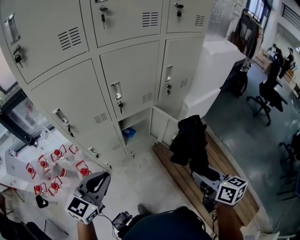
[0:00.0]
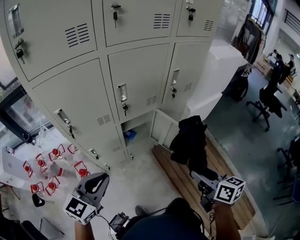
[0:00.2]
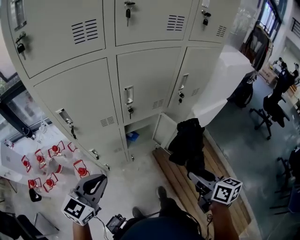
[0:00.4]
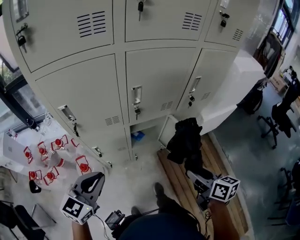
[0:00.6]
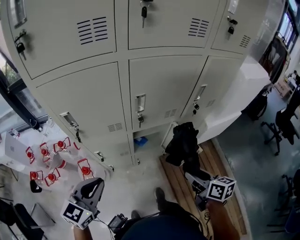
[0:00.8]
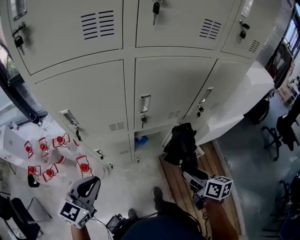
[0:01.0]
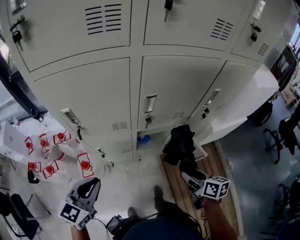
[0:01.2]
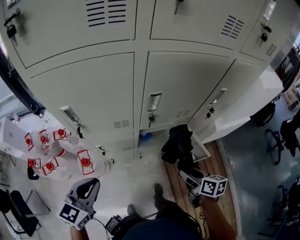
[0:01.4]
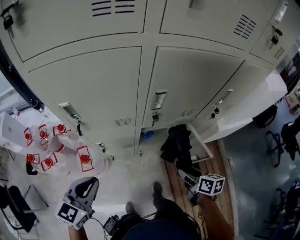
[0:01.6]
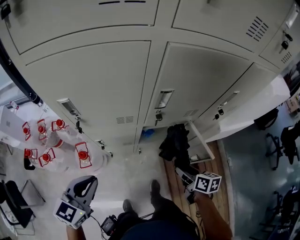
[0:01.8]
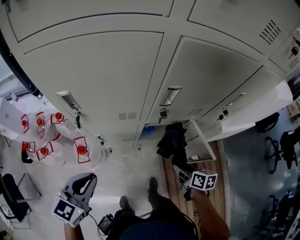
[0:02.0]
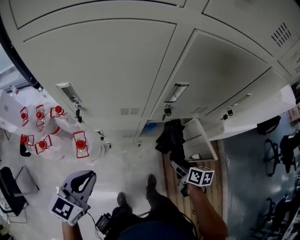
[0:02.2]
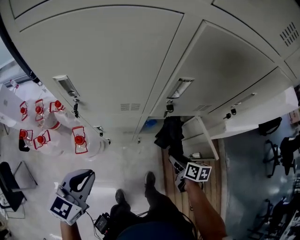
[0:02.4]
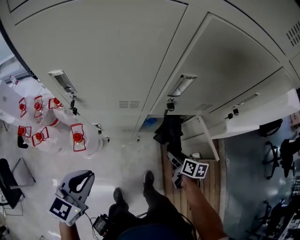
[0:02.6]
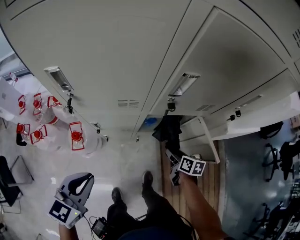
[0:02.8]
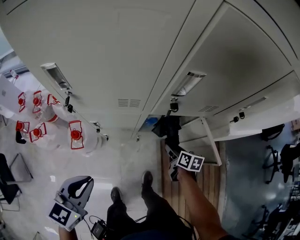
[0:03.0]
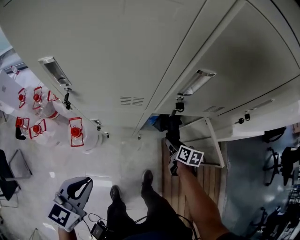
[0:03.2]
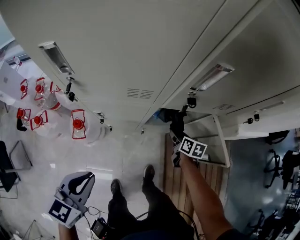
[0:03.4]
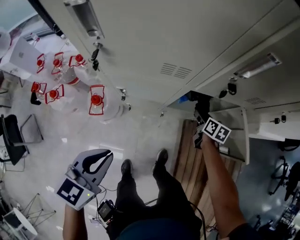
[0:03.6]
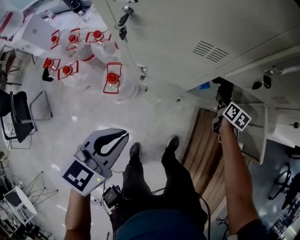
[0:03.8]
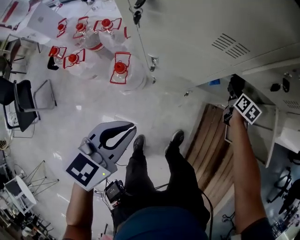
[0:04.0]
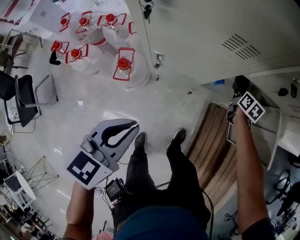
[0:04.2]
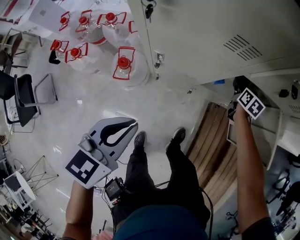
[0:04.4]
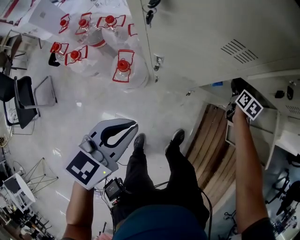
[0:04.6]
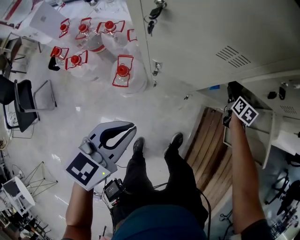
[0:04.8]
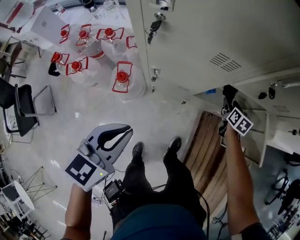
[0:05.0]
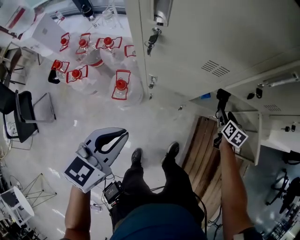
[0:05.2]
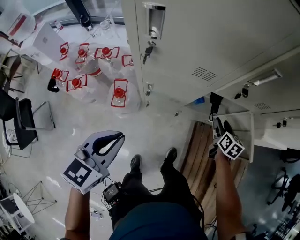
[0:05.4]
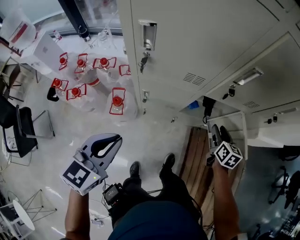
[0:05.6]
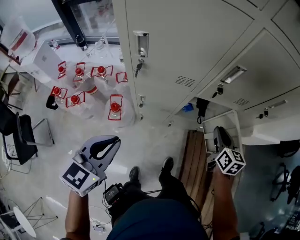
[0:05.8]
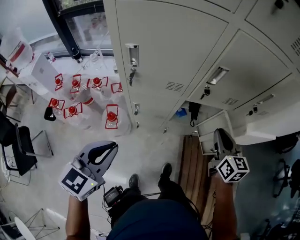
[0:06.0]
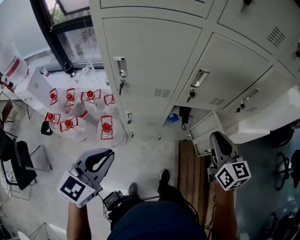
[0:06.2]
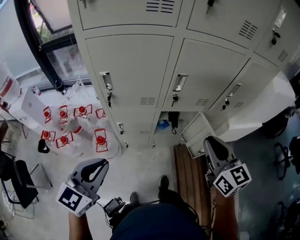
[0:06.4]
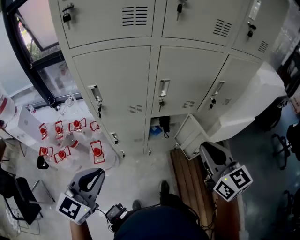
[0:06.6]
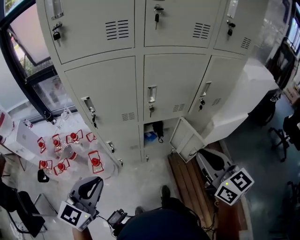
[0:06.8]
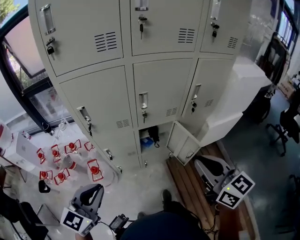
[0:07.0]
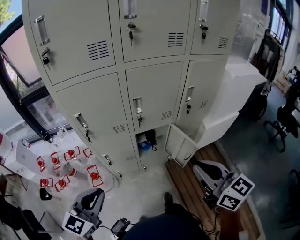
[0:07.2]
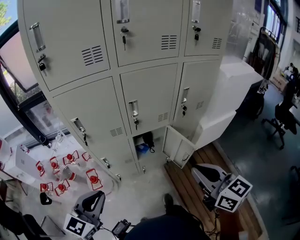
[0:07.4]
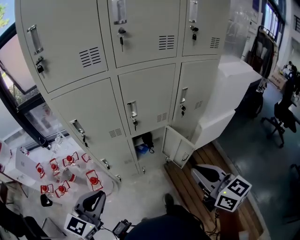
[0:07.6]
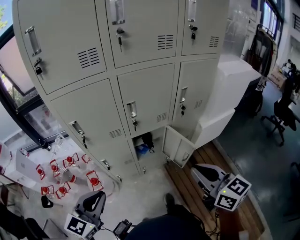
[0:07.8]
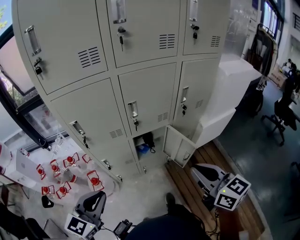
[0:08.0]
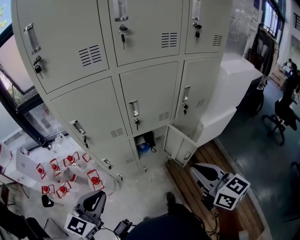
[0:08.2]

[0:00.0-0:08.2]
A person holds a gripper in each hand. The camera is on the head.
0.0 to 1.6 s: The right gripper travels forward and downward by about 30 cm, and swivels roughly 20 degrees. The left gripper shifts approximately 15 cm forward, to the left and downward, and changes its angle by roughly 20 degrees.
1.6 to 3.2 s: The left gripper goes roughly 10 cm downward; the right gripper travels downward and forward by some 25 cm.
3.2 to 5.0 s: The right gripper travels forward by about 10 cm, and swivels some 20 degrees. The left gripper is displaced to the left by about 5 cm.
5.0 to 6.6 s: The right gripper is displaced upward and backward by roughly 60 cm, tilts its fingers some 30 degrees upward, and closes. Meanwhile the left gripper heads upward and backward, covering approximately 25 cm, and rotates roughly 30 degrees.
6.6 to 8.2 s: The right gripper is displaced backward by some 10 cm.

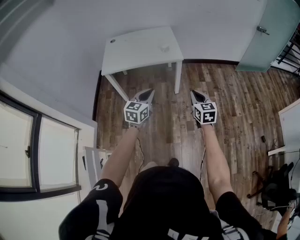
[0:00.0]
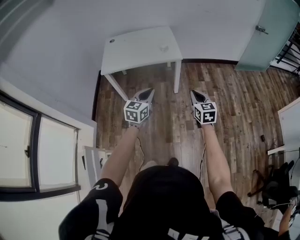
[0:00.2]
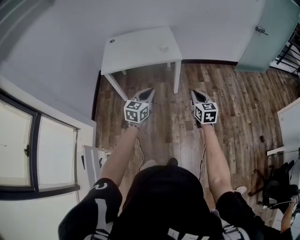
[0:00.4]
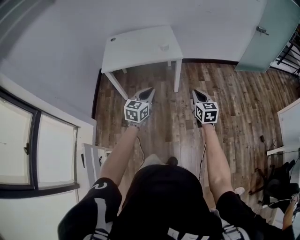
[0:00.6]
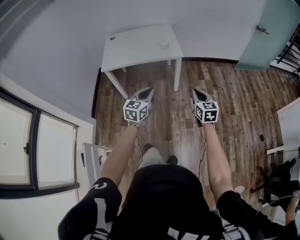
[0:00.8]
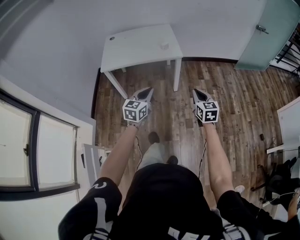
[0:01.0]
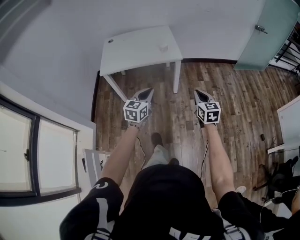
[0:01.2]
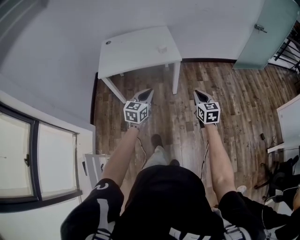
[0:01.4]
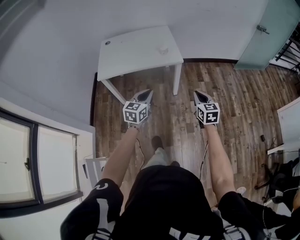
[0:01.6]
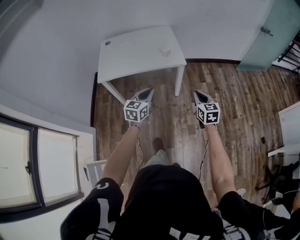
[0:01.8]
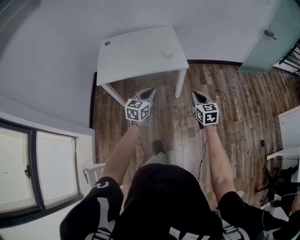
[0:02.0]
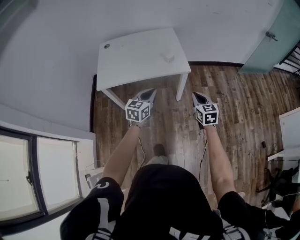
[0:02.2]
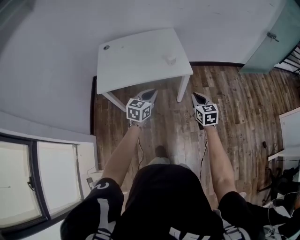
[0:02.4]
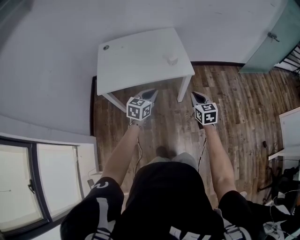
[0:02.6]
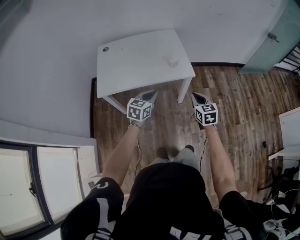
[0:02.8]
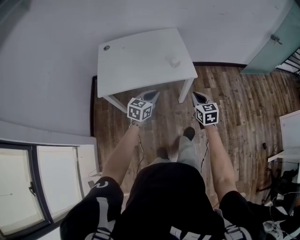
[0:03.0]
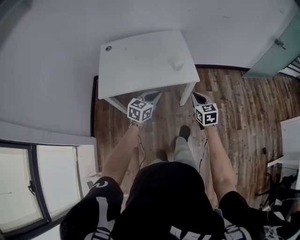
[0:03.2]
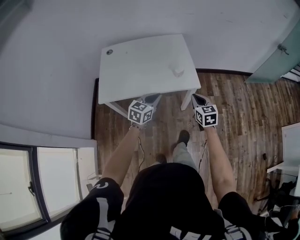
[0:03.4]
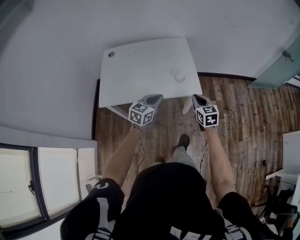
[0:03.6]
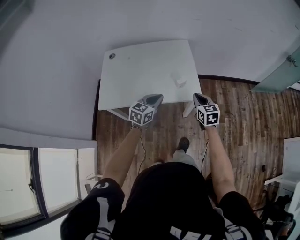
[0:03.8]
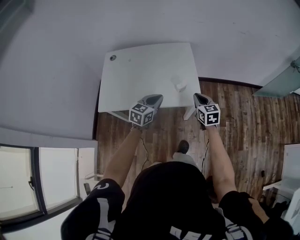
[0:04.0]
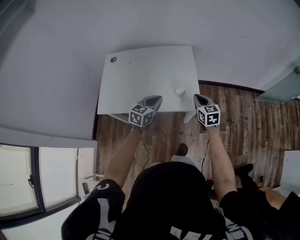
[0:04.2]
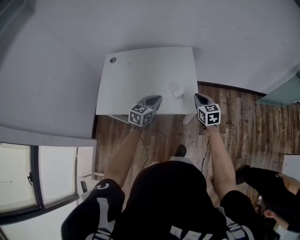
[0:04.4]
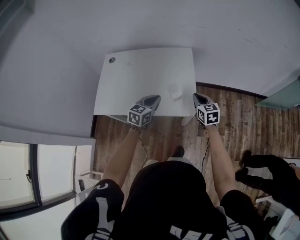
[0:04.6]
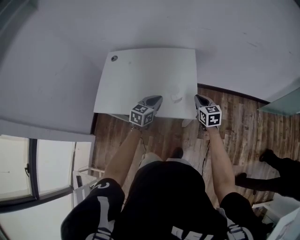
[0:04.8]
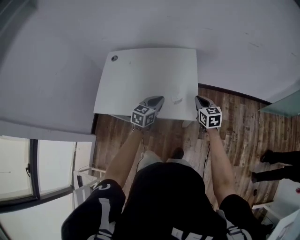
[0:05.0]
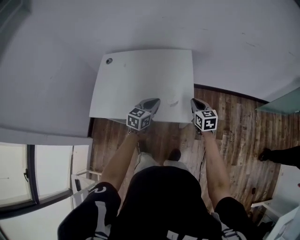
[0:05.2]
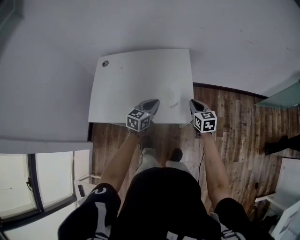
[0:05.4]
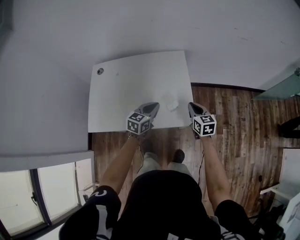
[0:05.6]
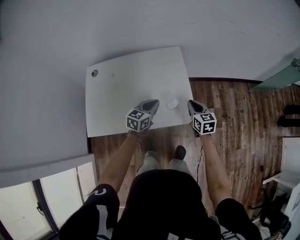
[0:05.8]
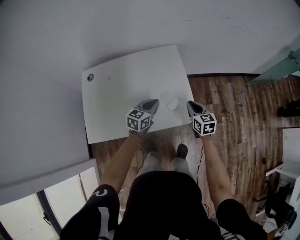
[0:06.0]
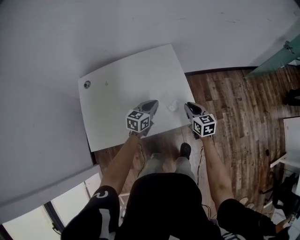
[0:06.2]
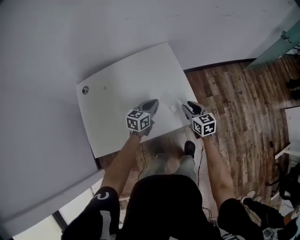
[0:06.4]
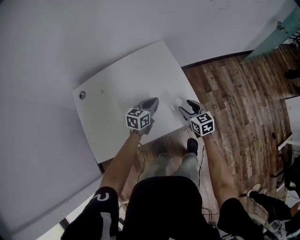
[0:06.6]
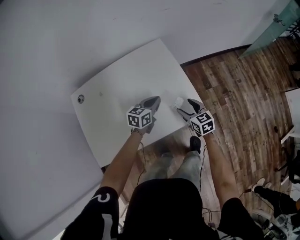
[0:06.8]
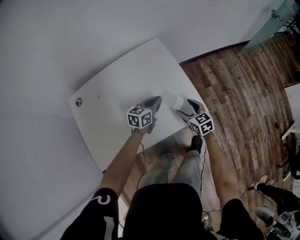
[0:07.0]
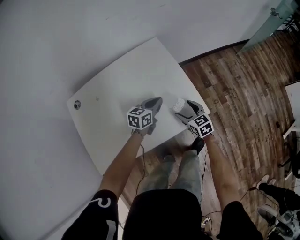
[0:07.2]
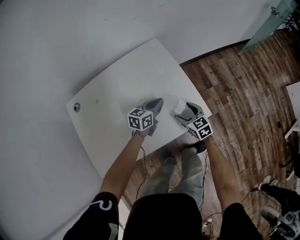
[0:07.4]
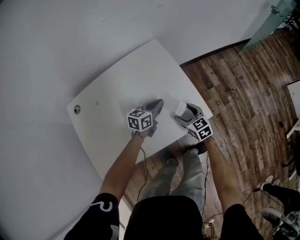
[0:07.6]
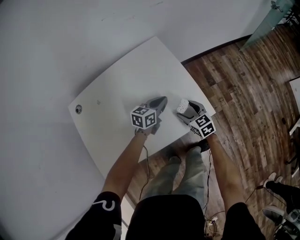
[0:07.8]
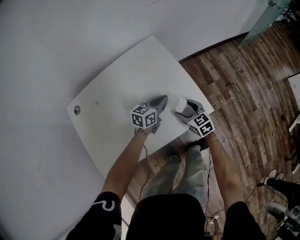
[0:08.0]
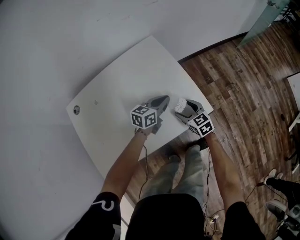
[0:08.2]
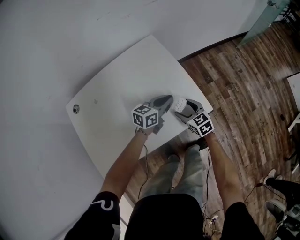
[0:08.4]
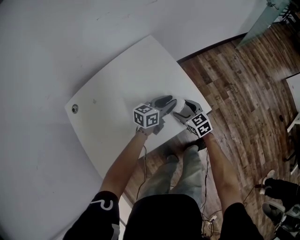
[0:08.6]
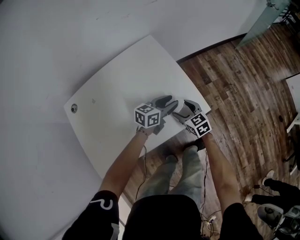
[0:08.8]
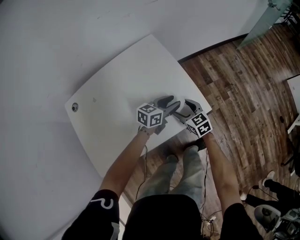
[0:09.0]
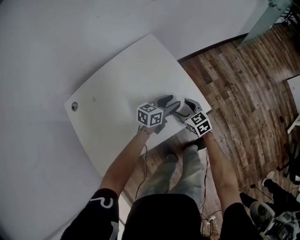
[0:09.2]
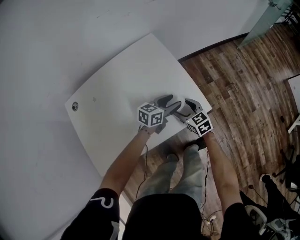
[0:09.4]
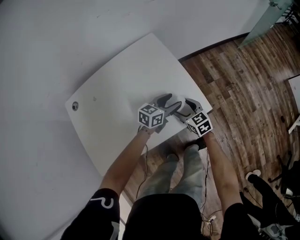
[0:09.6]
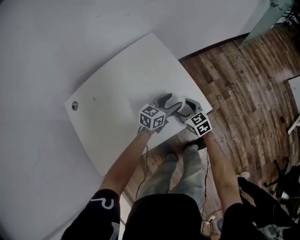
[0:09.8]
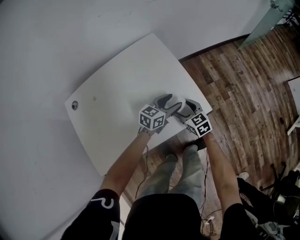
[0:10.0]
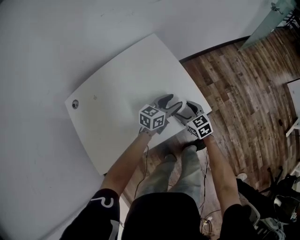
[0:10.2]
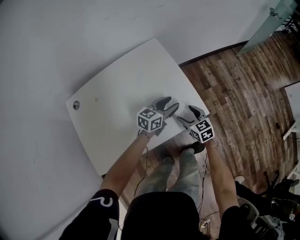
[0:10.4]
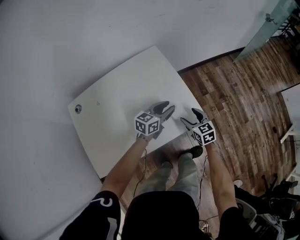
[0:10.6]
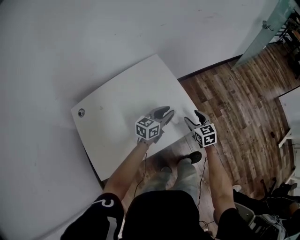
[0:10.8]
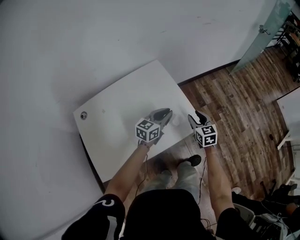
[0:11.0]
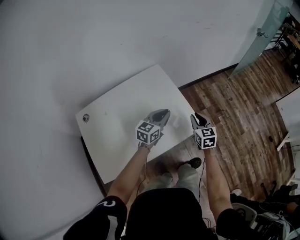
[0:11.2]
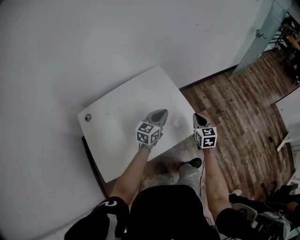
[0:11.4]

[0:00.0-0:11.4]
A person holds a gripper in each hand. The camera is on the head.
0.0 to 1.4 s: The grippers make only small movements.
1.4 to 2.8 s: Both grippers travel together forward and to the left, roughly 25 cm.
2.8 to 4.2 s: The grippers both shift forward by roughly 25 cm.
4.2 to 5.6 s: The two grippers go about 10 cm forward.
5.6 to 7.2 s: The right gripper heads downward and to the left, covering about 15 cm, and opens its fingers. The left gripper travels downward and forward by approximately 15 cm, and changes its angle by some 30 degrees.
7.2 to 8.6 s: The left gripper is displaced to the right by approximately 5 cm, and opens its fingers.
8.6 to 10.0 s: The left gripper opens.
10.0 to 11.4 s: The right gripper is displaced upward and to the right by approximately 20 cm, swivels some 30 degrees, and closes up. The left gripper travels upward and to the left by some 20 cm, and closes up.

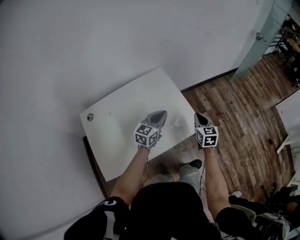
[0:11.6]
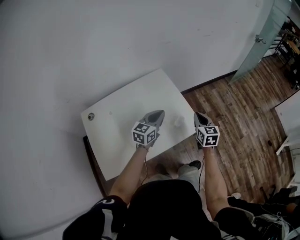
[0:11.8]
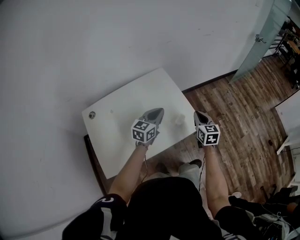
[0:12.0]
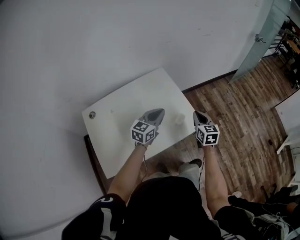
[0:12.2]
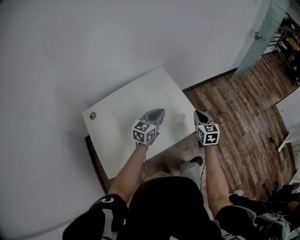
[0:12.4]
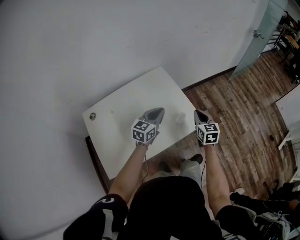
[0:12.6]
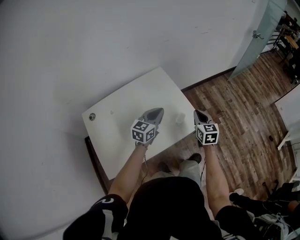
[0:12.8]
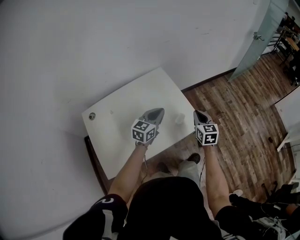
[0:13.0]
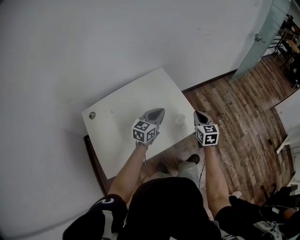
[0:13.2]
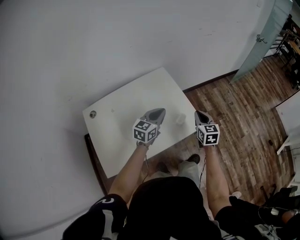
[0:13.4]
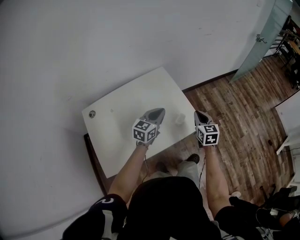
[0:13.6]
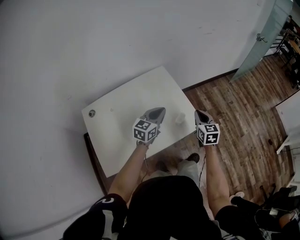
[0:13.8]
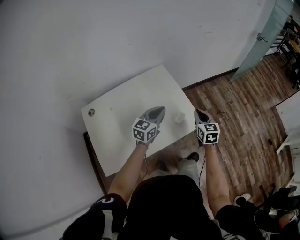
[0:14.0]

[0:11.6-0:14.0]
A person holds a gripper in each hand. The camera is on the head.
11.6 to 12.8 s: The grippers make only small movements.
12.8 to 14.0 s: The two grippers keep their place.

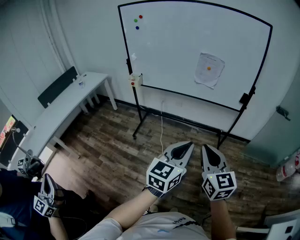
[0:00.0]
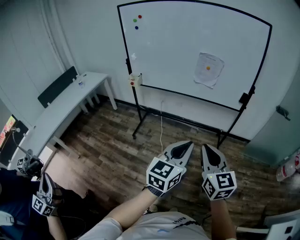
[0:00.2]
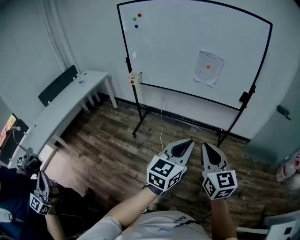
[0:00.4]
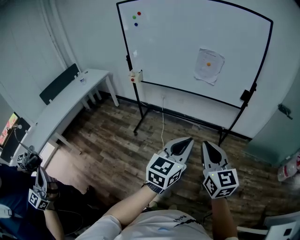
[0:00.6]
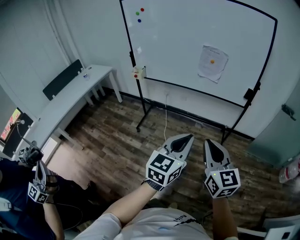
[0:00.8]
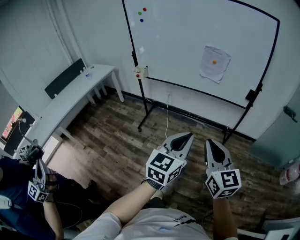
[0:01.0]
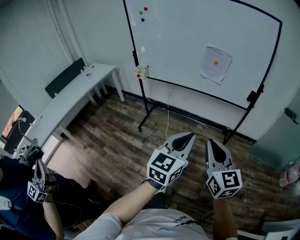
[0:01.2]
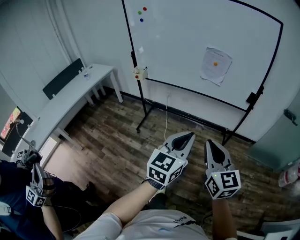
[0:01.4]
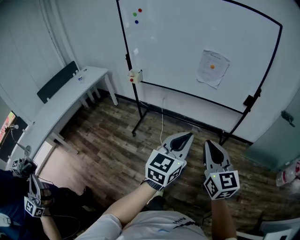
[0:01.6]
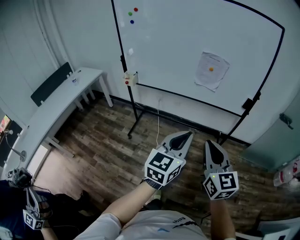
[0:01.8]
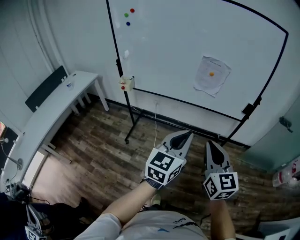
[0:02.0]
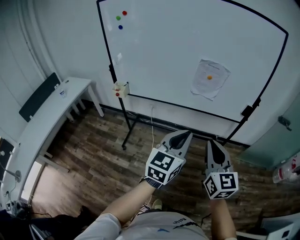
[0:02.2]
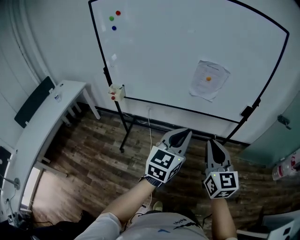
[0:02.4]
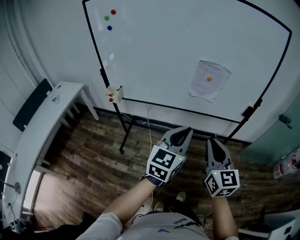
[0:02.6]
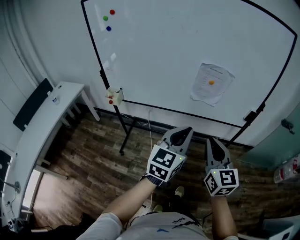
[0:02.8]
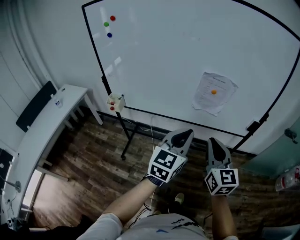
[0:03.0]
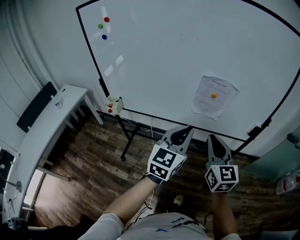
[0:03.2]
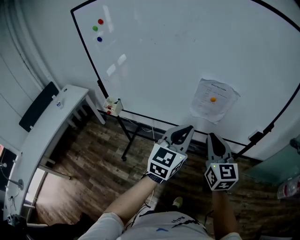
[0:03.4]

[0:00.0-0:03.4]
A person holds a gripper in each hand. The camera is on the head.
0.0 to 1.6 s: Both grippers travel together forward, approximately 10 cm.
1.6 to 3.4 s: The two grippers travel together, forward, approximately 40 cm.
